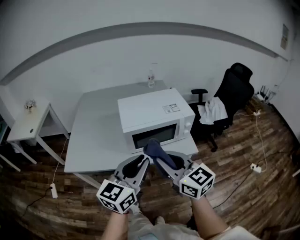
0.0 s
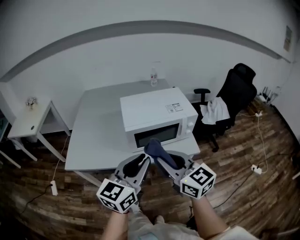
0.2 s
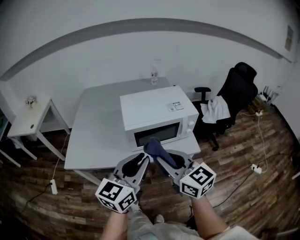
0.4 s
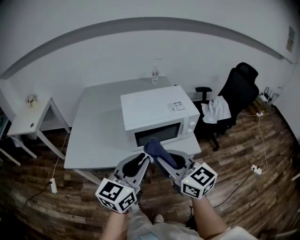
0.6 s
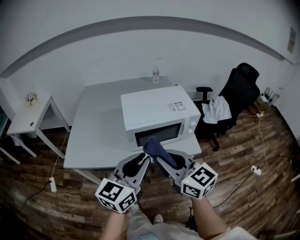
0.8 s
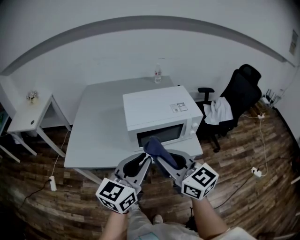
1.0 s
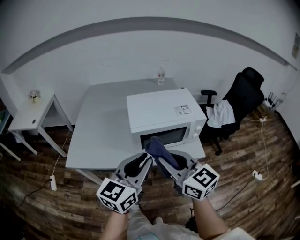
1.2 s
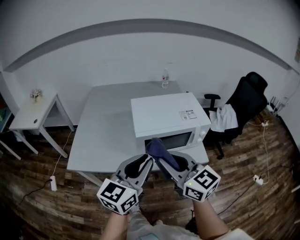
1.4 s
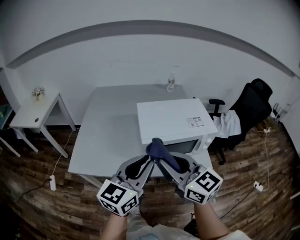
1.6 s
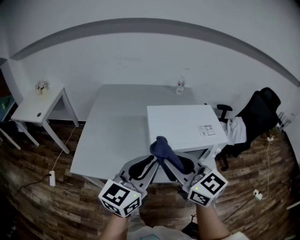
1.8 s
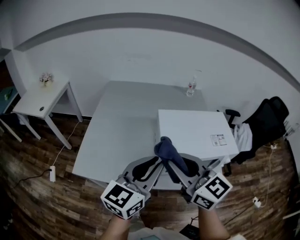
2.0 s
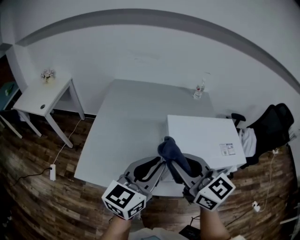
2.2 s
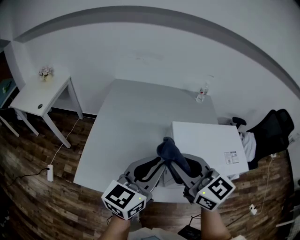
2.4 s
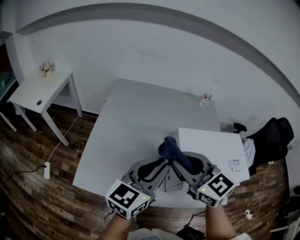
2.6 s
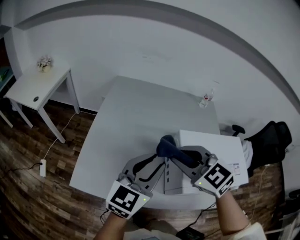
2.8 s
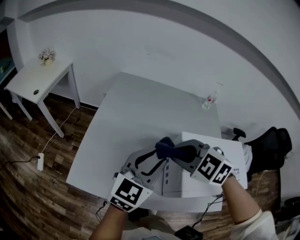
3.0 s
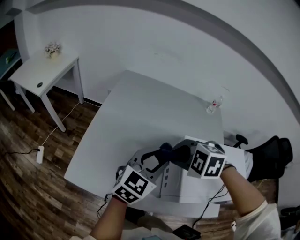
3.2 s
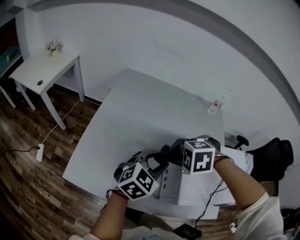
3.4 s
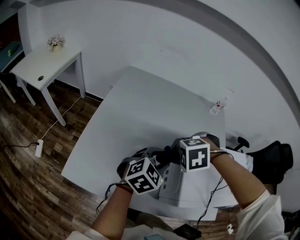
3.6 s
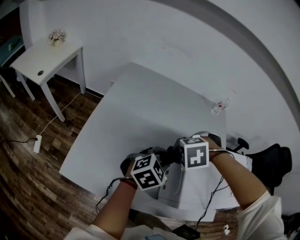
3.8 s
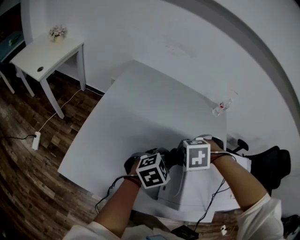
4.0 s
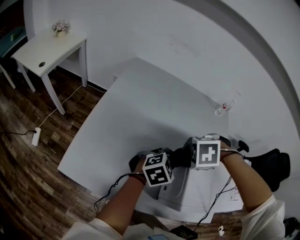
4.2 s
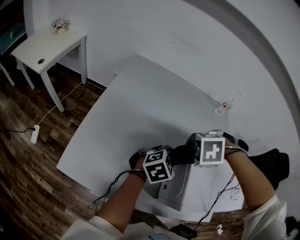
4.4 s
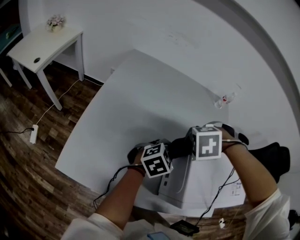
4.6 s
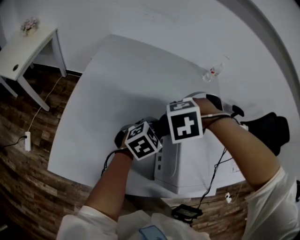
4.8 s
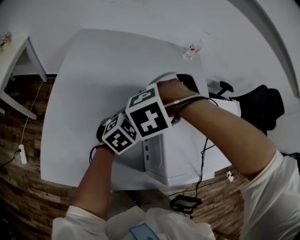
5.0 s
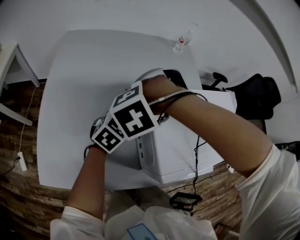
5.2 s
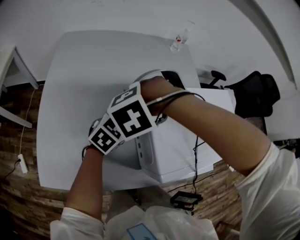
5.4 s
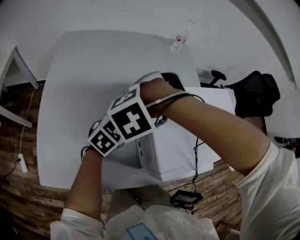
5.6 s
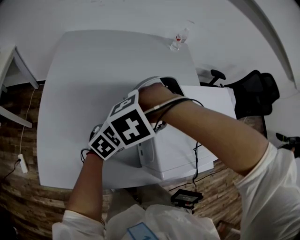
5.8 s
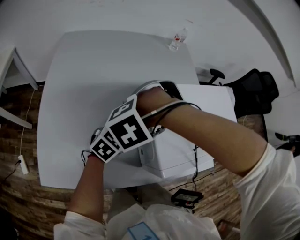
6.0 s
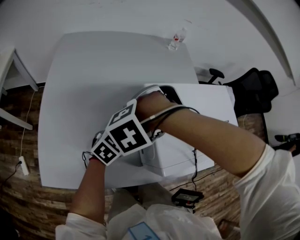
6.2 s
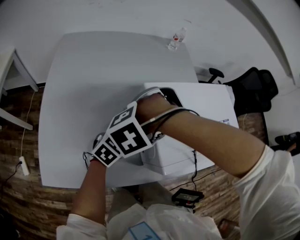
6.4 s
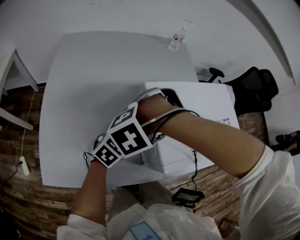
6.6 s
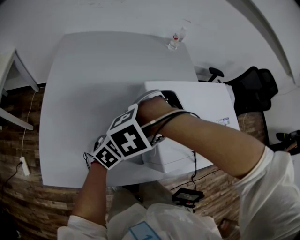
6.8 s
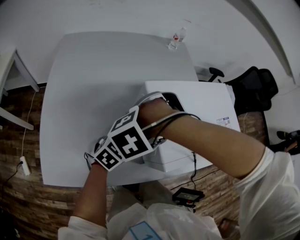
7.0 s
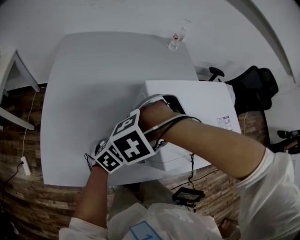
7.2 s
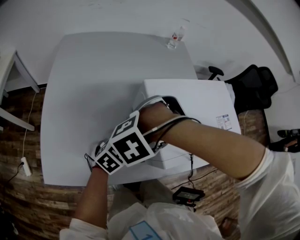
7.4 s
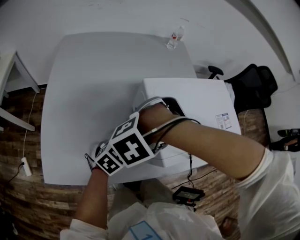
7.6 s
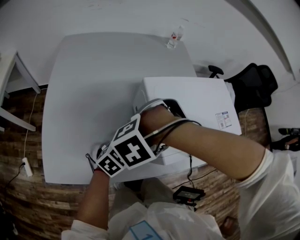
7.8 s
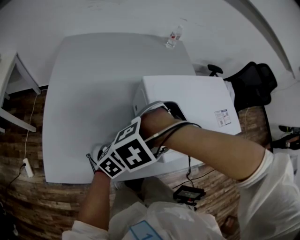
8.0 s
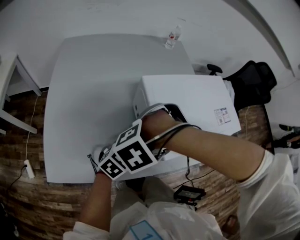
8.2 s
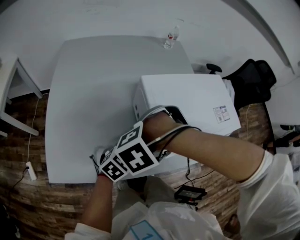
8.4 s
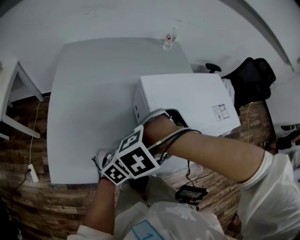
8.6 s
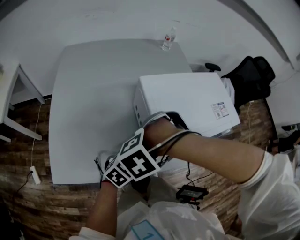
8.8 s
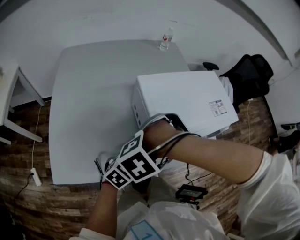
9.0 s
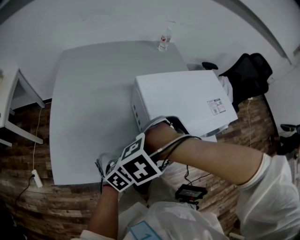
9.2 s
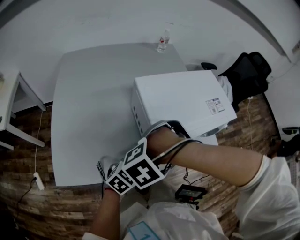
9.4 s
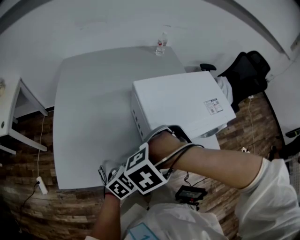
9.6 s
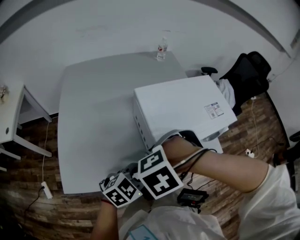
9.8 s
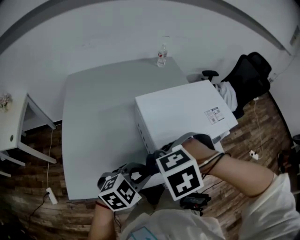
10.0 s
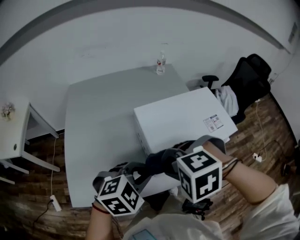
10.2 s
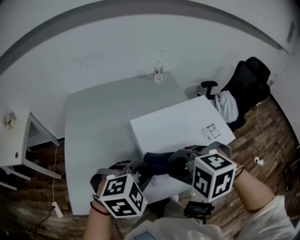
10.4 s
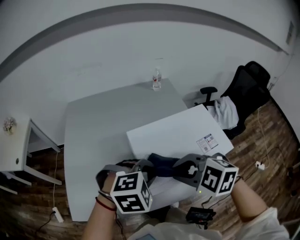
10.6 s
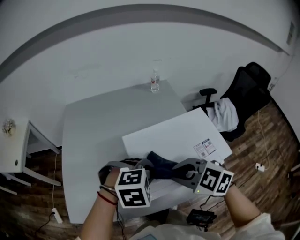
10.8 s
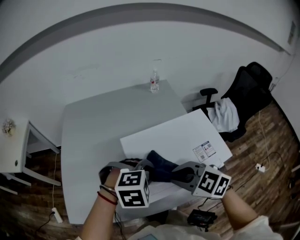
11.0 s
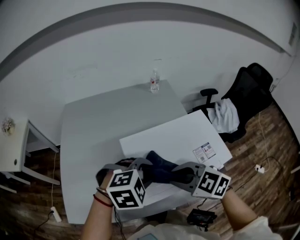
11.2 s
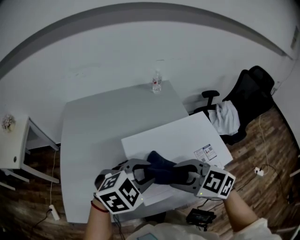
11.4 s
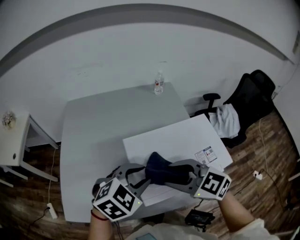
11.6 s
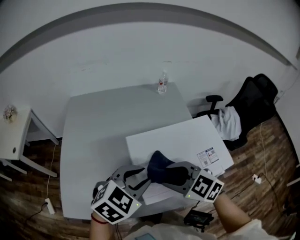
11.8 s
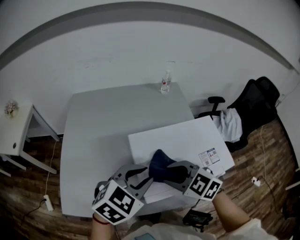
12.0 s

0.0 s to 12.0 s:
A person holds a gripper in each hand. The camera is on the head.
0.0 to 1.6 s: Both grippers travel together forward and to the left, some 10 cm.
1.6 to 3.0 s: The grippers both shift forward and to the left by about 30 cm. The right gripper angles its fingers downward, by about 50 degrees.
3.0 to 4.4 s: The right gripper shifts about 10 cm downward, tips its fingers downward by roughly 40 degrees, and opens. Meanwhile the left gripper is displaced downward by about 15 cm, and points its fingers approximately 30 degrees further downward.
4.4 to 6.0 s: The left gripper moves about 5 cm, while the right gripper closes its fingers.
6.0 to 7.6 s: The left gripper moves some 10 cm. The right gripper ends up some 5 cm from where it was.
7.6 to 9.0 s: The left gripper shifts by approximately 10 cm. The right gripper moves about 10 cm.
9.0 to 10.4 s: Both grippers travel together upward, about 15 cm. The left gripper swivels roughly 40 degrees; the right gripper swivels approximately 50 degrees.
10.4 to 12.0 s: The left gripper travels forward by some 5 cm, and changes its angle by about 30 degrees, while the right gripper goes roughly 10 cm forward and downward, rotates about 30 degrees, and opens its fingers.

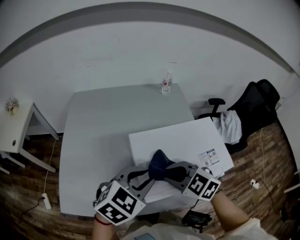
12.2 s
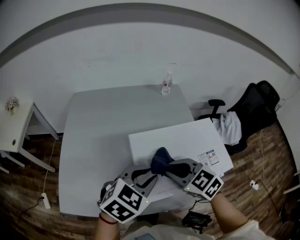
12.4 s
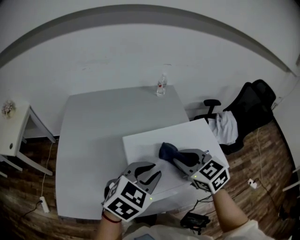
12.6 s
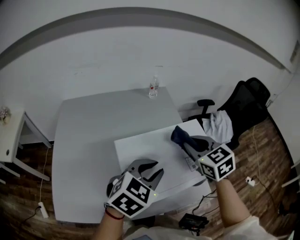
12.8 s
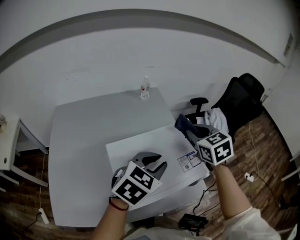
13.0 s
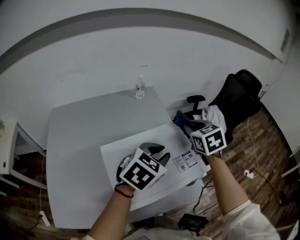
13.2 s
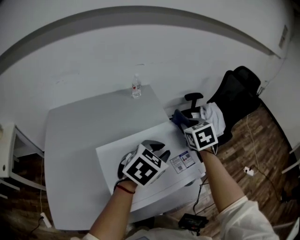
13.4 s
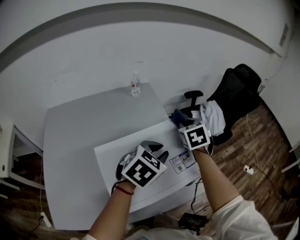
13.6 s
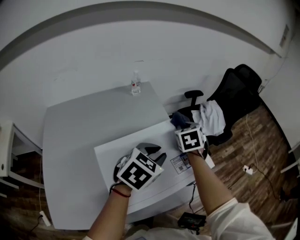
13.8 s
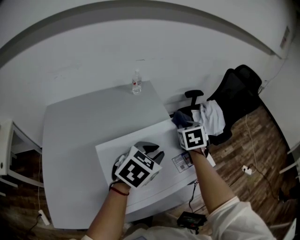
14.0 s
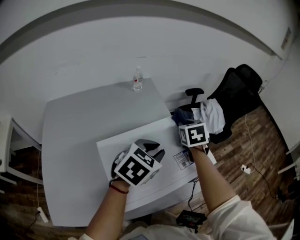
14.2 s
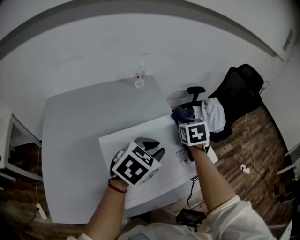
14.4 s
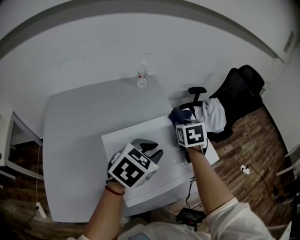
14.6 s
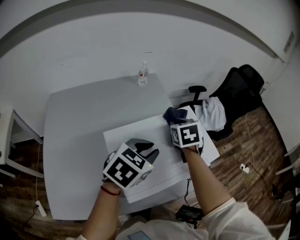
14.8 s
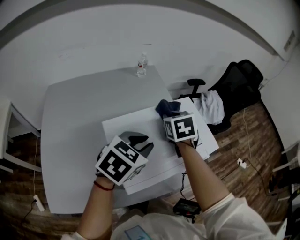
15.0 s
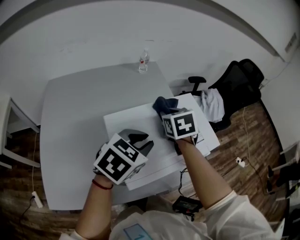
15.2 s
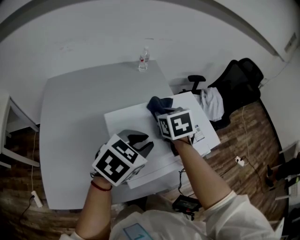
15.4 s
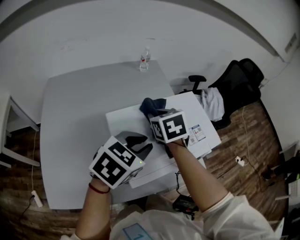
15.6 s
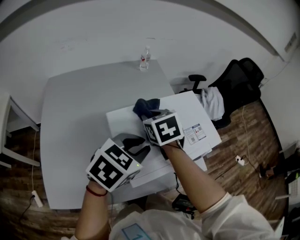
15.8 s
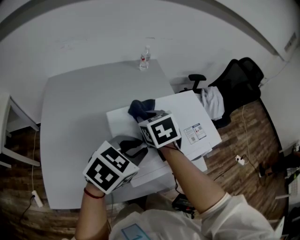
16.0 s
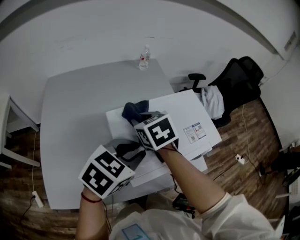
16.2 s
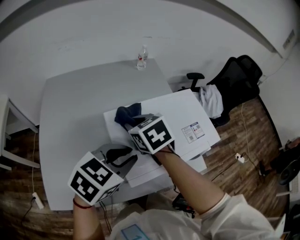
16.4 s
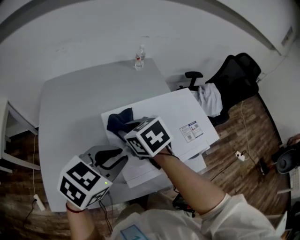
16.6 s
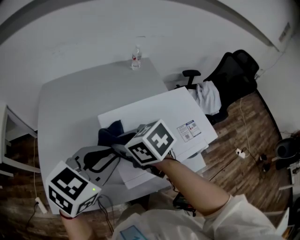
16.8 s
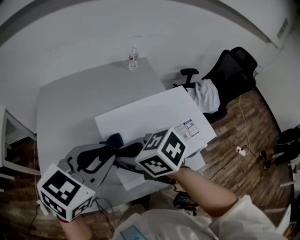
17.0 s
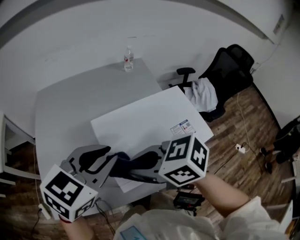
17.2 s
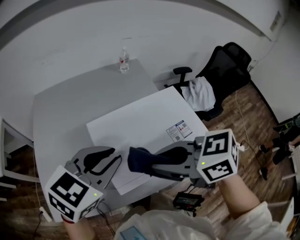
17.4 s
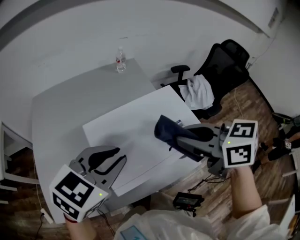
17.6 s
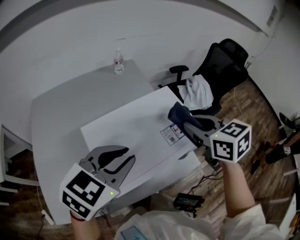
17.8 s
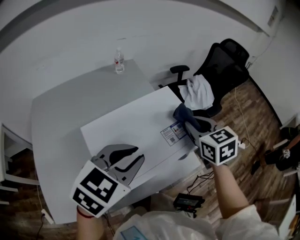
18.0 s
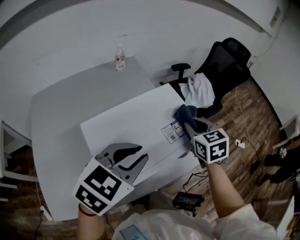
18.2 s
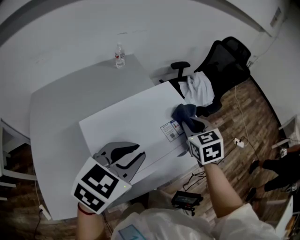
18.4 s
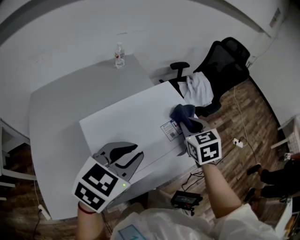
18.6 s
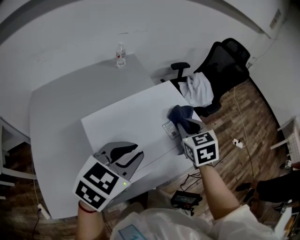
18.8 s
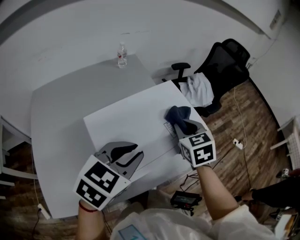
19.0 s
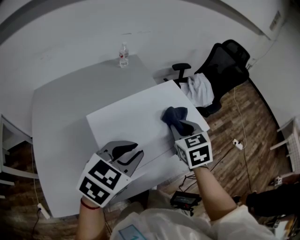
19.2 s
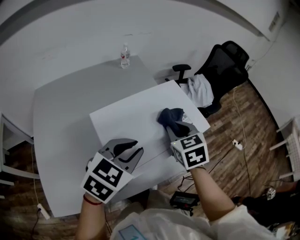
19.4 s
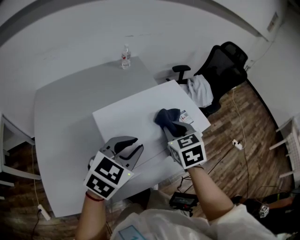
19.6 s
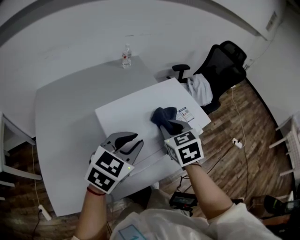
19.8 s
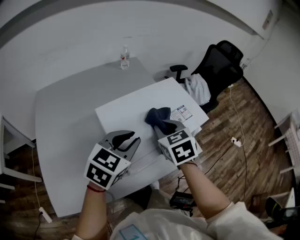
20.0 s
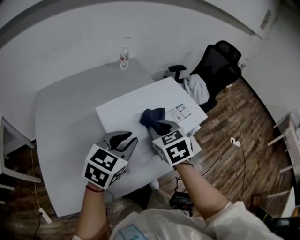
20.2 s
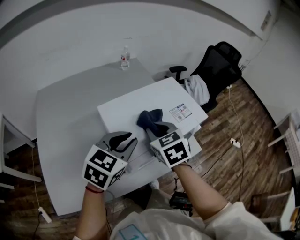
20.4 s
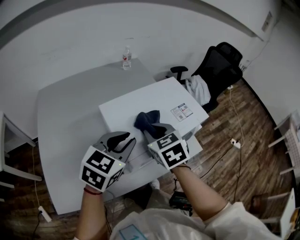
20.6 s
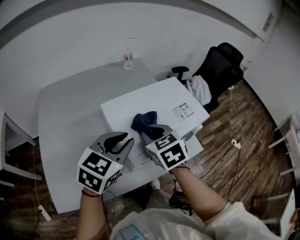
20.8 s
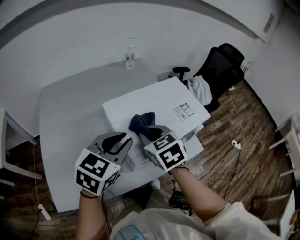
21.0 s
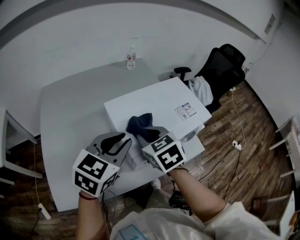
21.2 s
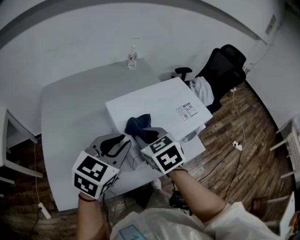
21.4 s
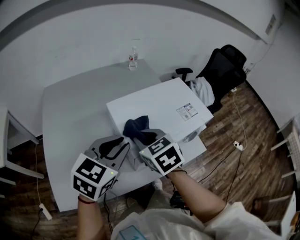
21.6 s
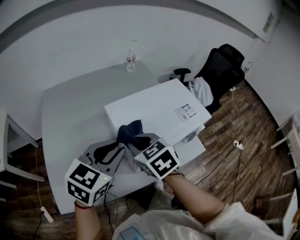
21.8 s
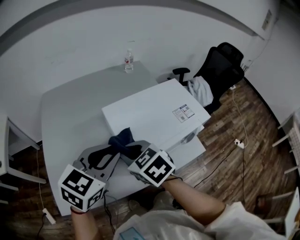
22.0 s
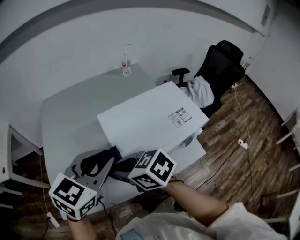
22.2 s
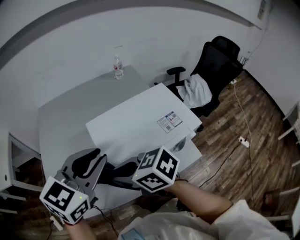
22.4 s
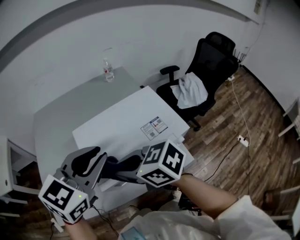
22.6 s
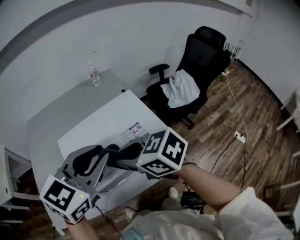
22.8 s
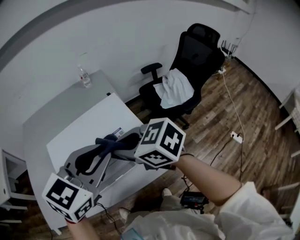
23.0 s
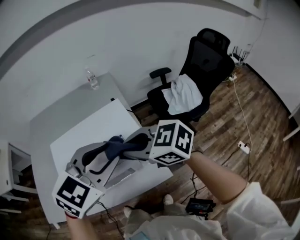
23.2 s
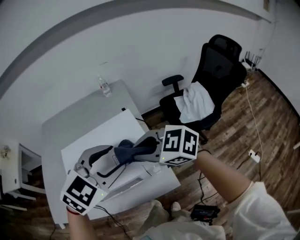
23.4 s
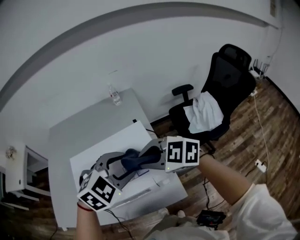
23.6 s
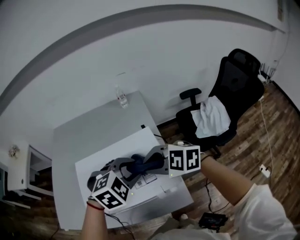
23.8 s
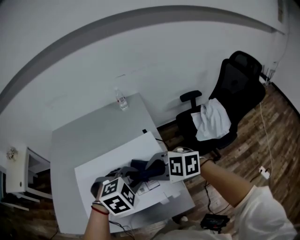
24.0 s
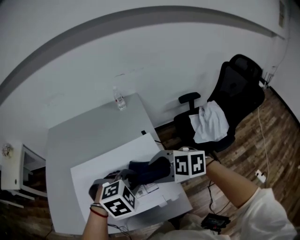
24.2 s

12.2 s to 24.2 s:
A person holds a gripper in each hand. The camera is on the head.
12.2 to 13.8 s: The right gripper moves some 10 cm upward and comes back, and changes its angle by approximately 70 degrees. The left gripper ends up roughly 20 cm from where it was.
13.8 to 15.2 s: The grippers both shift backward and to the left by about 15 cm.
15.2 to 16.6 s: The left gripper travels backward and to the left by approximately 10 cm; the right gripper is displaced to the left and backward by roughly 20 cm, and changes its angle by about 30 degrees.
16.6 to 18.2 s: The right gripper travels upward and back again, approximately 15 cm each way, and swivels about 40 degrees; the left gripper shifts by roughly 15 cm.
18.2 to 19.8 s: The right gripper heads to the left and backward, covering some 15 cm. Meanwhile the left gripper heads to the left, covering some 5 cm.
19.8 to 21.2 s: The left gripper shifts approximately 10 cm to the left and backward. Meanwhile the right gripper moves to the left and backward, roughly 15 cm.
21.2 to 22.6 s: The left gripper moves some 10 cm. Meanwhile the right gripper shifts by roughly 10 cm, and turns by some 40 degrees.
22.6 to 24.2 s: The right gripper ends up some 25 cm from where it was, rotates around the line of its fingers by approximately 40 degrees, counterclockwise from behind, and opens. Meanwhile the left gripper moves approximately 25 cm, points its fingers approximately 40 degrees further downward, and opens, then closes once more.
